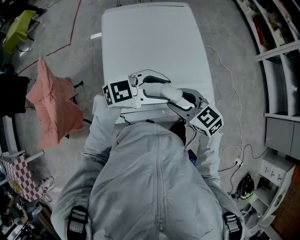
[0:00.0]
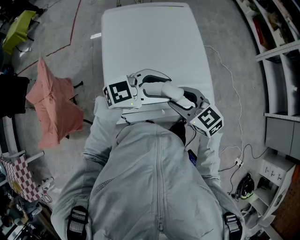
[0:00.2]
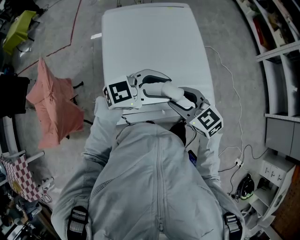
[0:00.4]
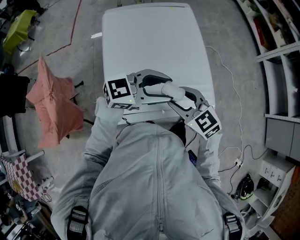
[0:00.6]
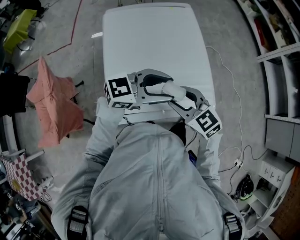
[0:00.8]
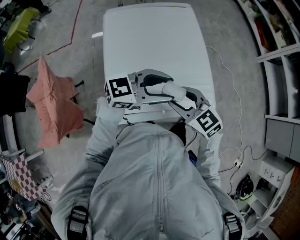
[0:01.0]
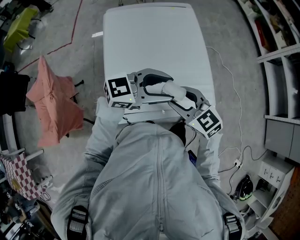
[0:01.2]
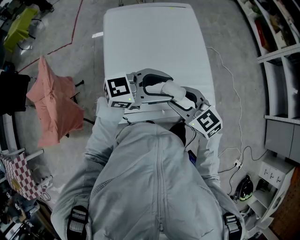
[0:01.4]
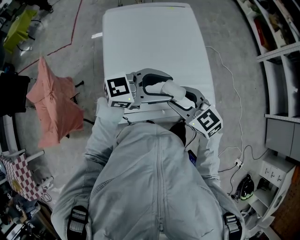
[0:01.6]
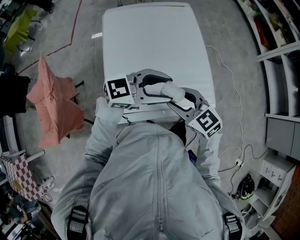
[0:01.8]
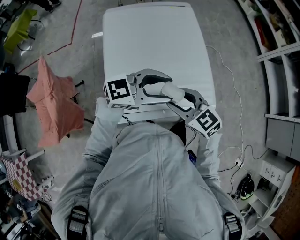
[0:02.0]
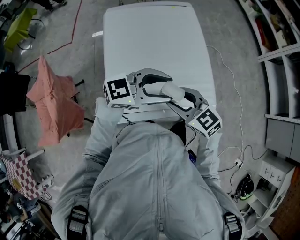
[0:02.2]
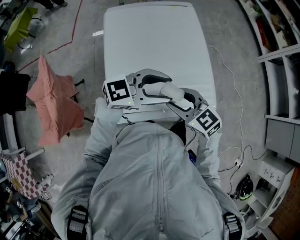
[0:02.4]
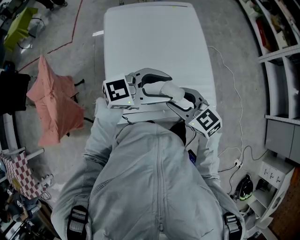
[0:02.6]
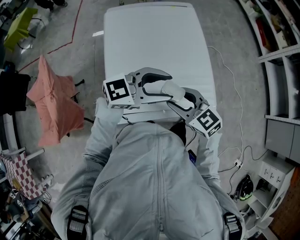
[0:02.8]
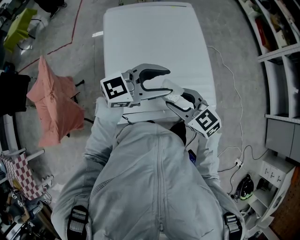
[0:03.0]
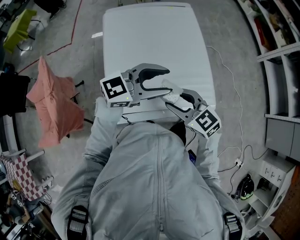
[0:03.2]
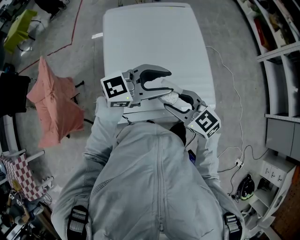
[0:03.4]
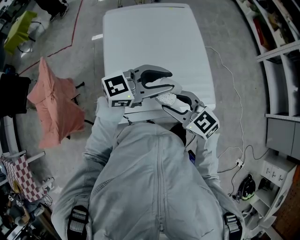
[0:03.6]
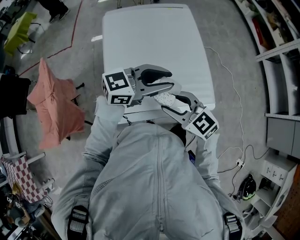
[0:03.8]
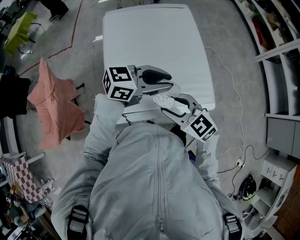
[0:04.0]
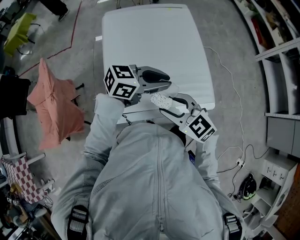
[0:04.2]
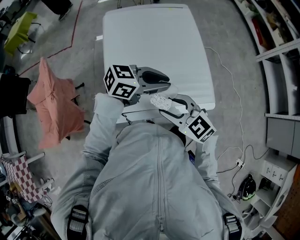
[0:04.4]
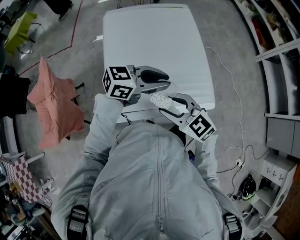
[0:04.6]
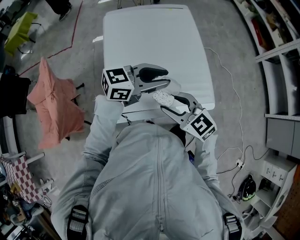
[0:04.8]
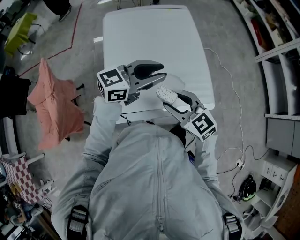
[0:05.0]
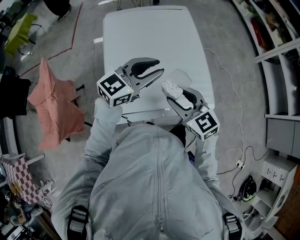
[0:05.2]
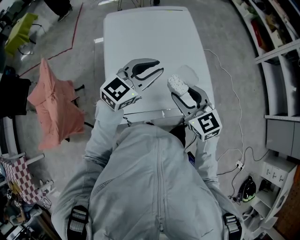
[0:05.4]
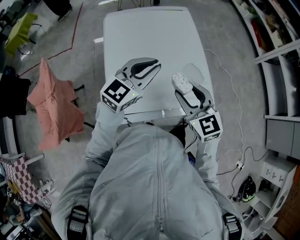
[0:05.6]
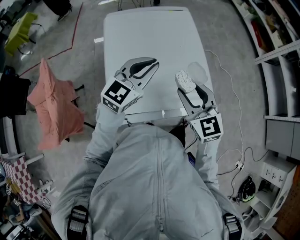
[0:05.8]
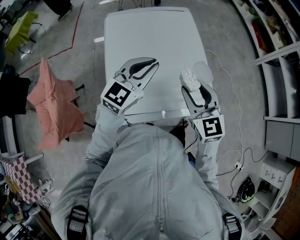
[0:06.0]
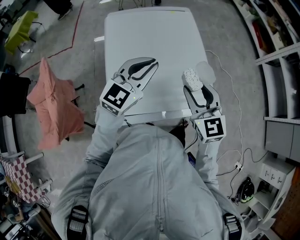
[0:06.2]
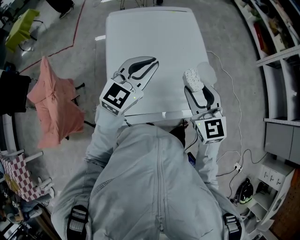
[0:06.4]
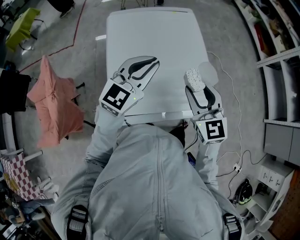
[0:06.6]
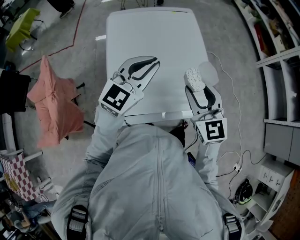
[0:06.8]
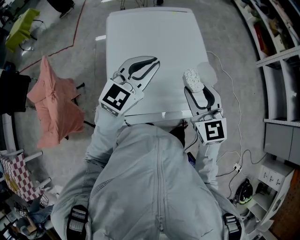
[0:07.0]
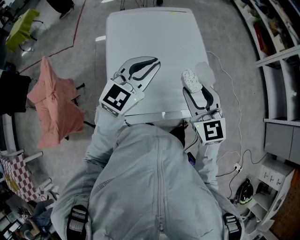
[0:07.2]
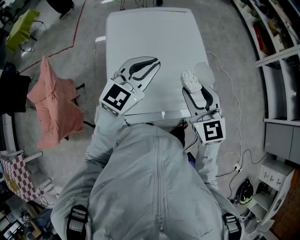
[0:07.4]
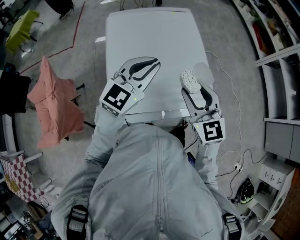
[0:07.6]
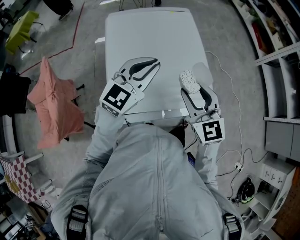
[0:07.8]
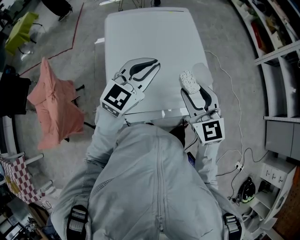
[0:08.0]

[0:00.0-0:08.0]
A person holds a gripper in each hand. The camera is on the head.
0:00.0 to 0:03.2: The grippers stay close to where they were, moving slightly.
0:03.2 to 0:04.8: The left gripper closes.
0:04.8 to 0:06.4: The right gripper moves about 10 cm, and swivels approximately 30 degrees. The left gripper shifts by roughly 10 cm, and changes its angle by roughly 40 degrees.
0:06.4 to 0:08.0: The grippers move only a little.

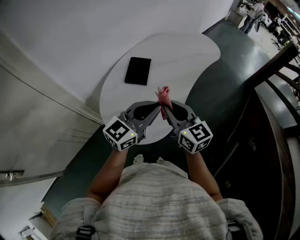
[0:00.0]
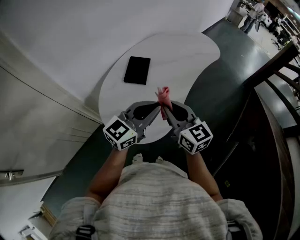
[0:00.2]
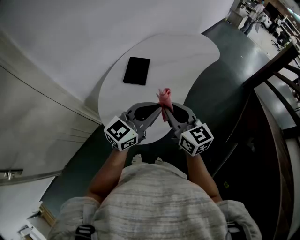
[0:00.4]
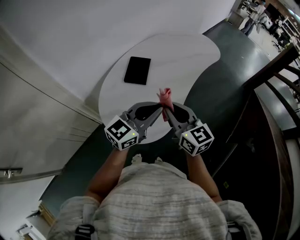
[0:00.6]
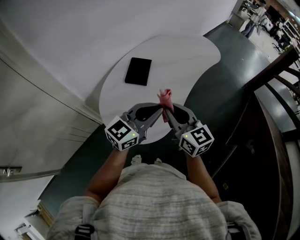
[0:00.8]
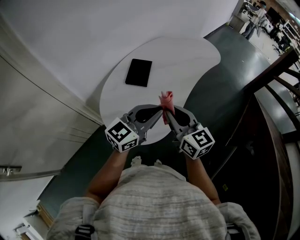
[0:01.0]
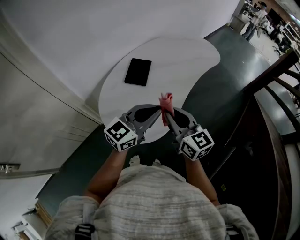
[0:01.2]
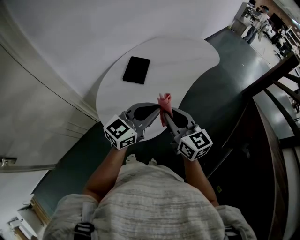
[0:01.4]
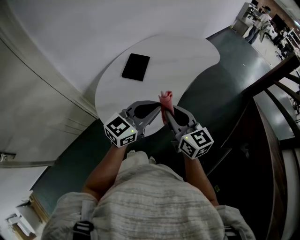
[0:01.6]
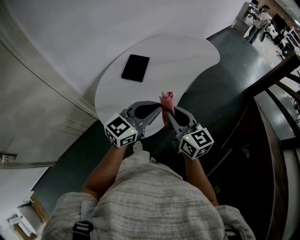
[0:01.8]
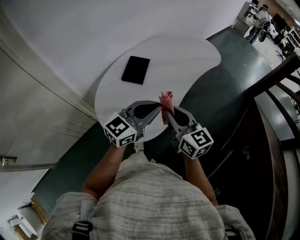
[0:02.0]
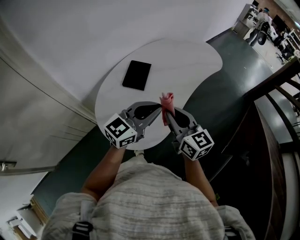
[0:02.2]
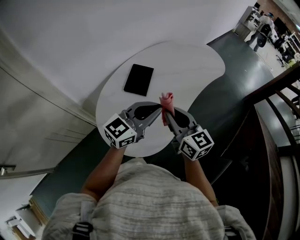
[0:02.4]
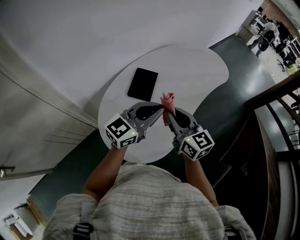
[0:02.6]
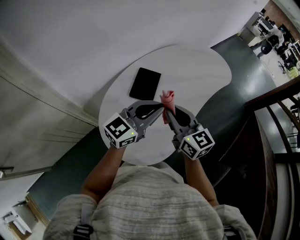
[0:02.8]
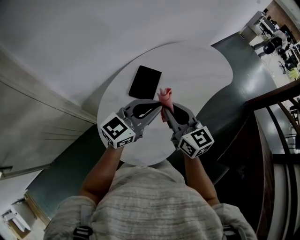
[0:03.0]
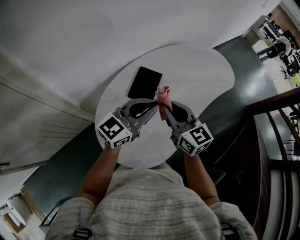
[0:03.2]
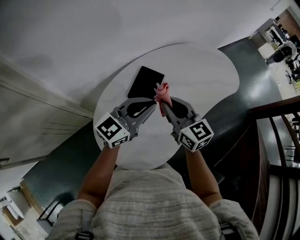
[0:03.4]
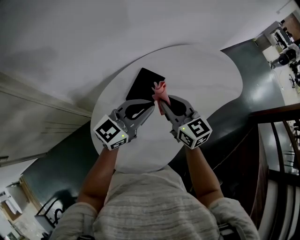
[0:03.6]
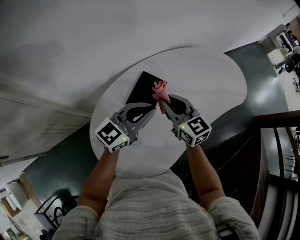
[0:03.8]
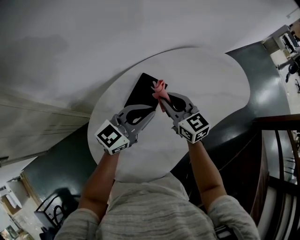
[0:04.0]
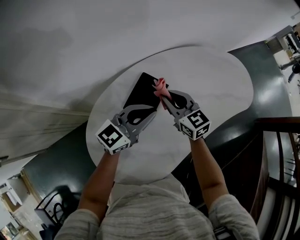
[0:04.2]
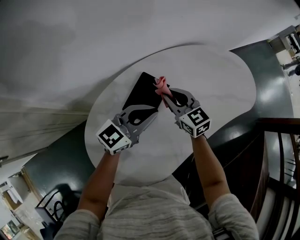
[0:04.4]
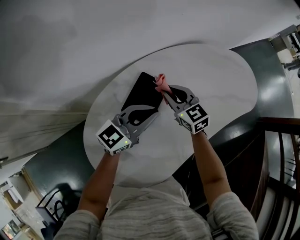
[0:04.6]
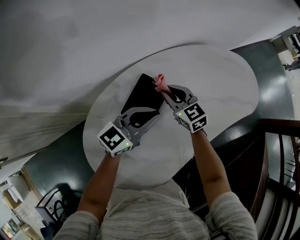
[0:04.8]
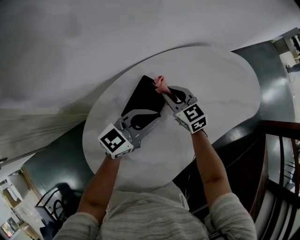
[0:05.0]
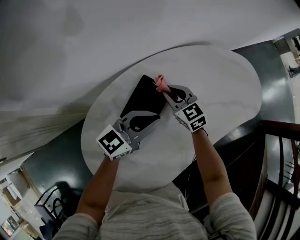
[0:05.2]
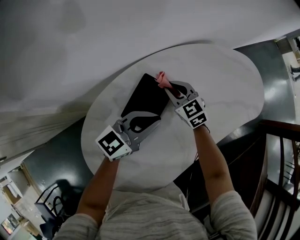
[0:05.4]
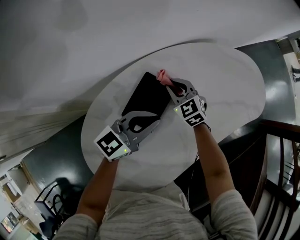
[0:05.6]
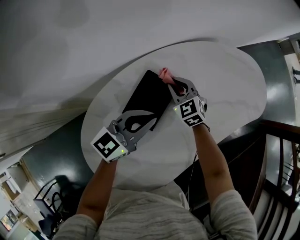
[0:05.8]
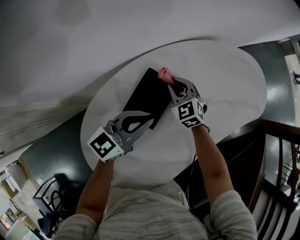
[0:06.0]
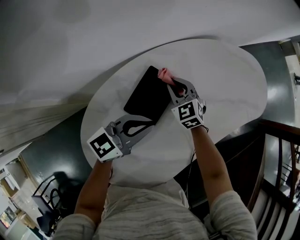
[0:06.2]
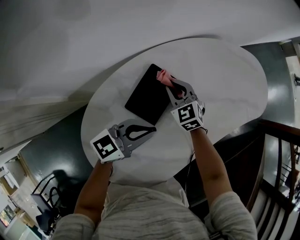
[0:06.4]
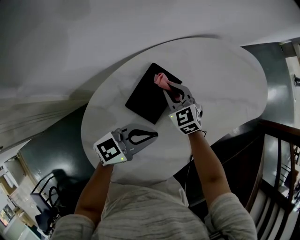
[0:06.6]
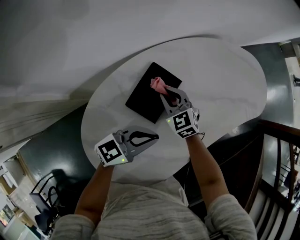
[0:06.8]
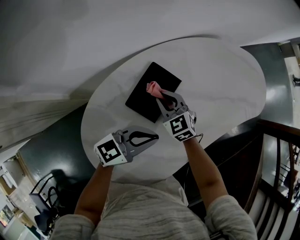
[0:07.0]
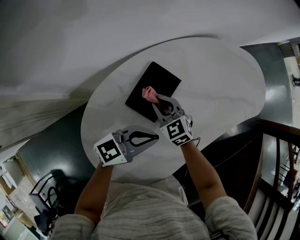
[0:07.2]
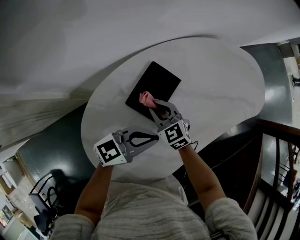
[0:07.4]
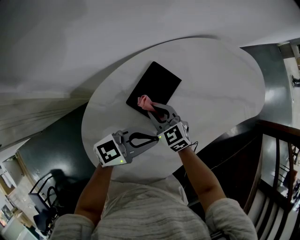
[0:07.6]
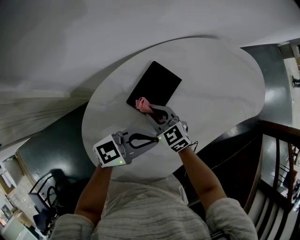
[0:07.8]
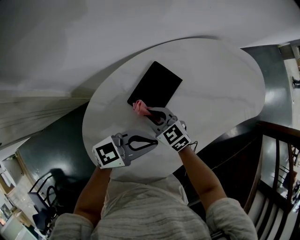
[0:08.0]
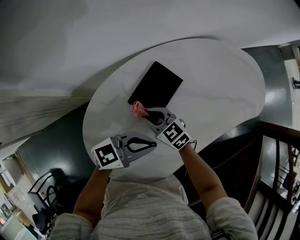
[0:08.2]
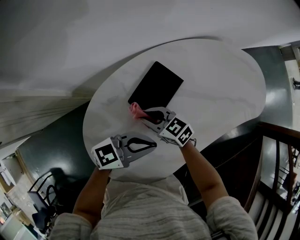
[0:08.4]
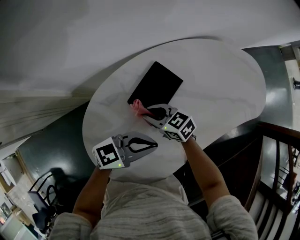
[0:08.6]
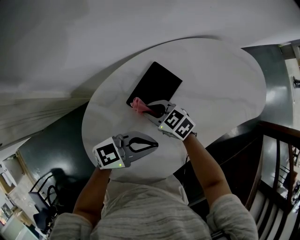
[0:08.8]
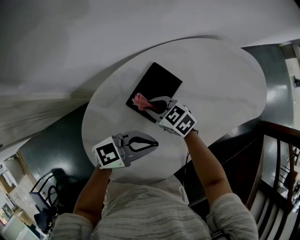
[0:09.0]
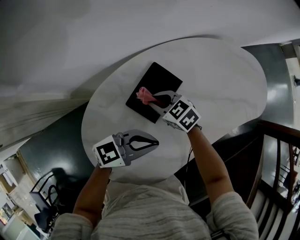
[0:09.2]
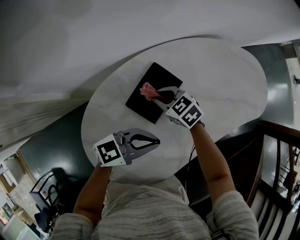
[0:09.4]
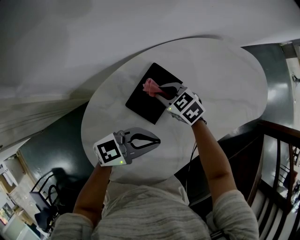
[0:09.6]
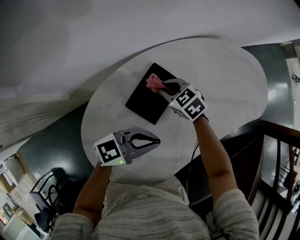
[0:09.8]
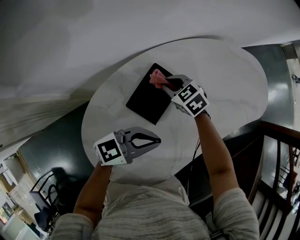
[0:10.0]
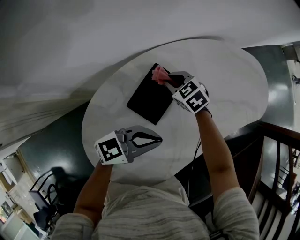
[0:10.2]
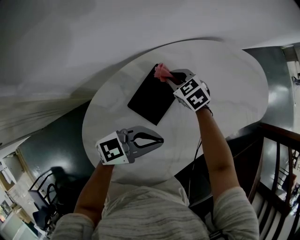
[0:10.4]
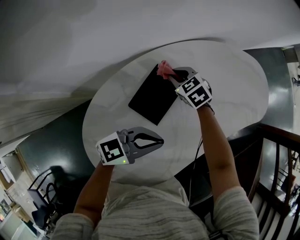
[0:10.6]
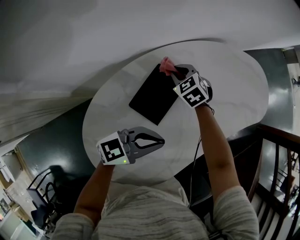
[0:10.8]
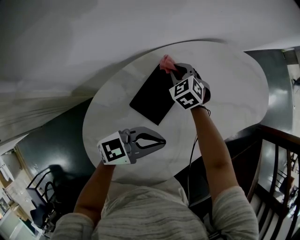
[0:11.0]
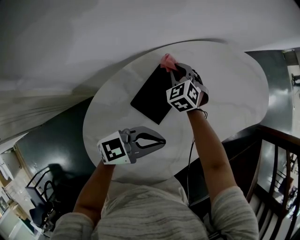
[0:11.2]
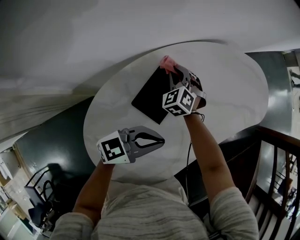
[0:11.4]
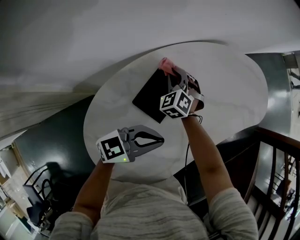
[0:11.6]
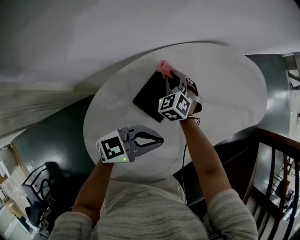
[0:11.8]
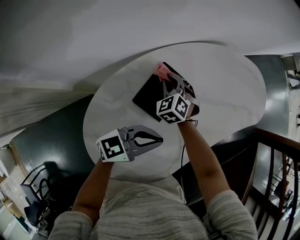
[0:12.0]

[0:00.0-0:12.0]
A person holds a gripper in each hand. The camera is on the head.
0:00.0 to 0:01.6: The right gripper moves roughly 5 cm.
0:01.6 to 0:03.0: Both grippers travel together forward and to the left, roughly 20 cm.
0:03.0 to 0:04.4: The two grippers go some 20 cm forward and downward. The right gripper changes its angle by some 20 degrees.
0:04.4 to 0:06.0: The right gripper goes some 10 cm downward and forward, and changes its angle by about 30 degrees. The left gripper changes place by approximately 5 cm.
0:06.0 to 0:07.6: The right gripper moves backward, approximately 15 cm, and swivels about 20 degrees, while the left gripper is displaced backward by some 10 cm.
0:07.6 to 0:09.0: The right gripper changes its angle by some 20 degrees.
0:09.0 to 0:10.4: The right gripper moves about 15 cm, and rotates about 20 degrees.
0:10.4 to 0:12.0: The right gripper turns by about 30 degrees.

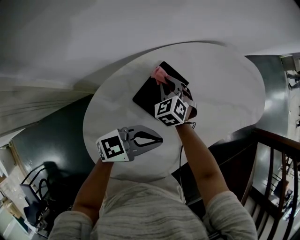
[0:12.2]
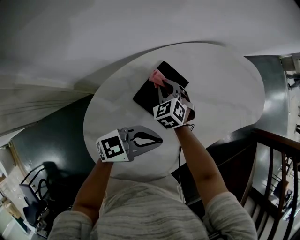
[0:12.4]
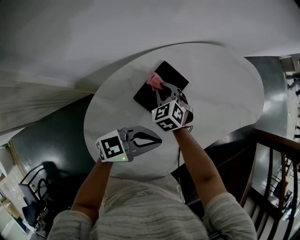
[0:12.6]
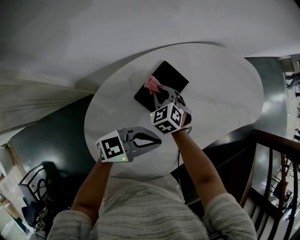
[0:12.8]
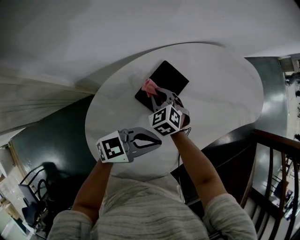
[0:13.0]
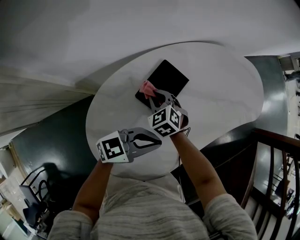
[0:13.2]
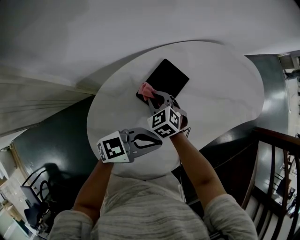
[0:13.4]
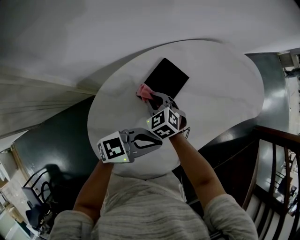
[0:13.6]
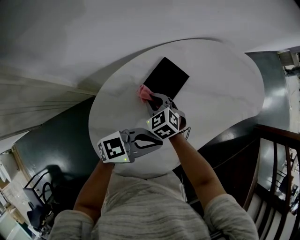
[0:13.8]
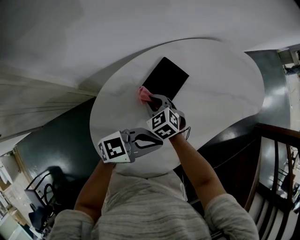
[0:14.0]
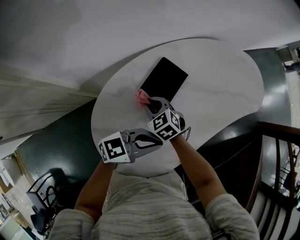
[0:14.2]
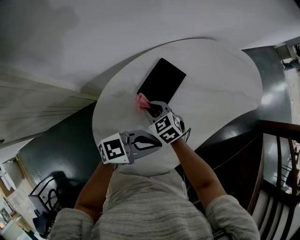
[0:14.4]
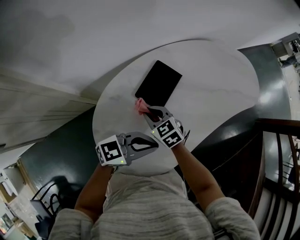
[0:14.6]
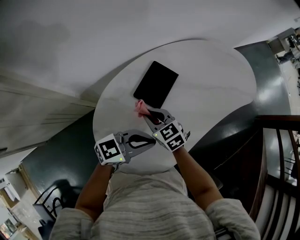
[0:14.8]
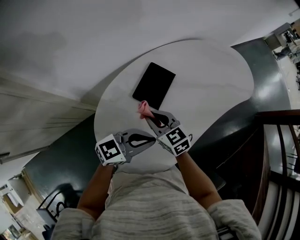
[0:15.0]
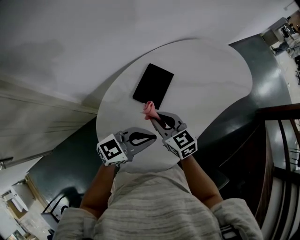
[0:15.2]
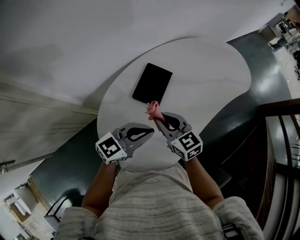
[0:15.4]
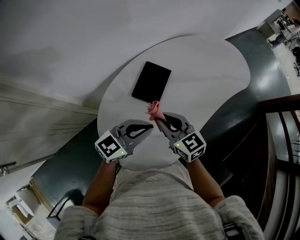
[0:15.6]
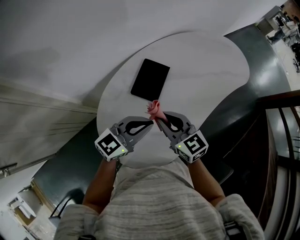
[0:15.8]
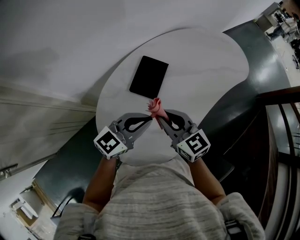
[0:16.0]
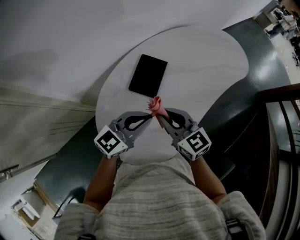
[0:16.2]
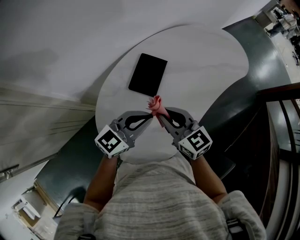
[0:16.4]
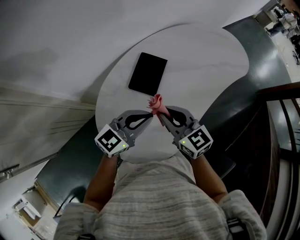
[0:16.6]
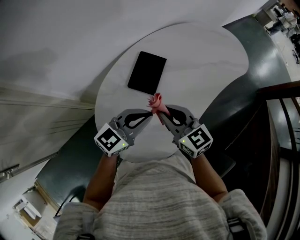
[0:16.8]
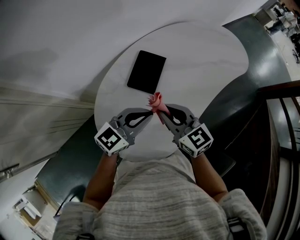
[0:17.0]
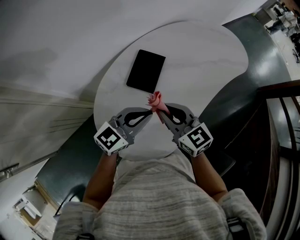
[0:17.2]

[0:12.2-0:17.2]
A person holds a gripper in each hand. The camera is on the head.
0:12.2 to 0:13.8: The left gripper goes about 5 cm backward; the right gripper is displaced backward by some 15 cm.
0:13.8 to 0:15.6: The right gripper moves upward, approximately 15 cm, and rotates approximately 40 degrees; the left gripper shifts by about 10 cm.
0:15.6 to 0:17.2: The grippers stay close to where they were, moving slightly.
